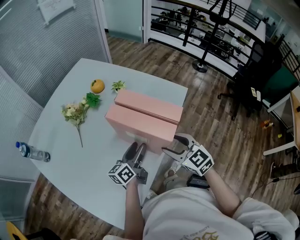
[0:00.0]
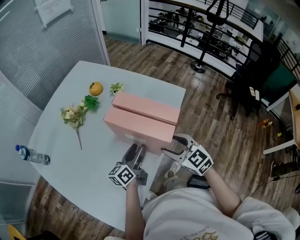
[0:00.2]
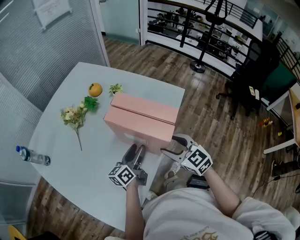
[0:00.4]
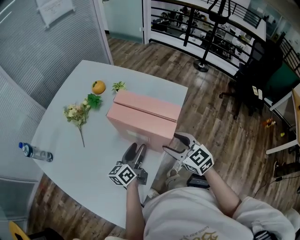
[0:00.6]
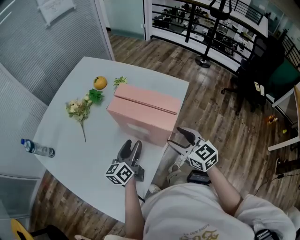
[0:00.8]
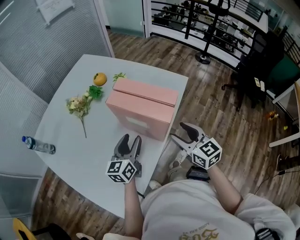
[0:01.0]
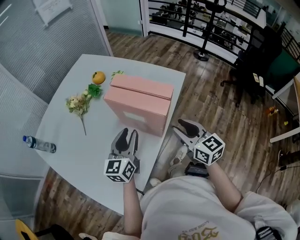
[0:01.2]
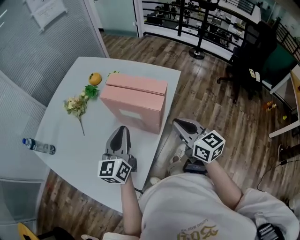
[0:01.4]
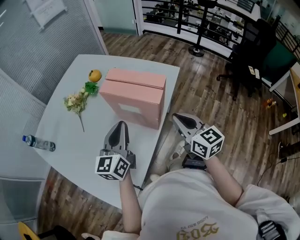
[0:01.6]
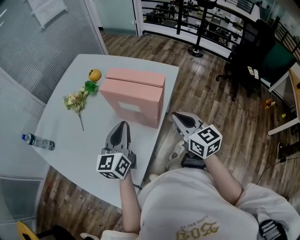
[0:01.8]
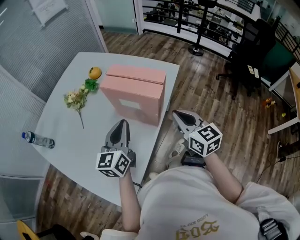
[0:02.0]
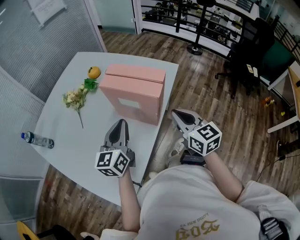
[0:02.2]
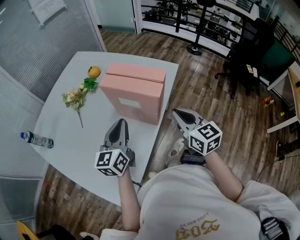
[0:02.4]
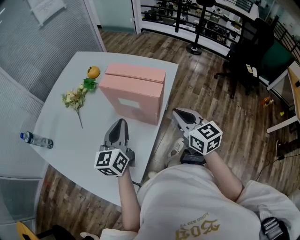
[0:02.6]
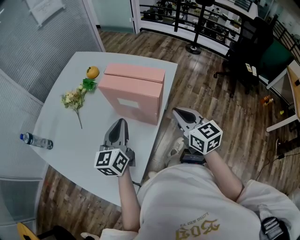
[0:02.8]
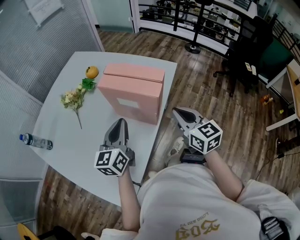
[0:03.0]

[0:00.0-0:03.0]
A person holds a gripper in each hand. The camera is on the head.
0:00.0 to 0:01.6: The right gripper moves upward, backward and to the right, roughly 10 cm, swivels some 30 degrees, and closes, while the left gripper heads upward and backward, covering approximately 15 cm, swivels about 30 degrees, and closes up.
0:01.6 to 0:03.0: The grippers make only small movements.

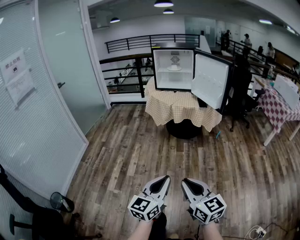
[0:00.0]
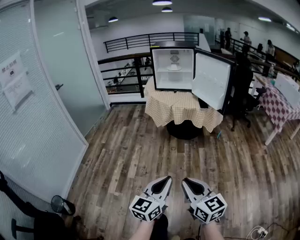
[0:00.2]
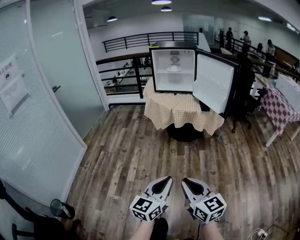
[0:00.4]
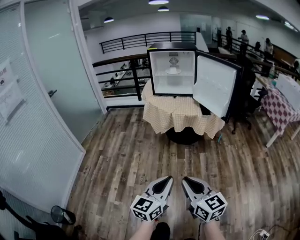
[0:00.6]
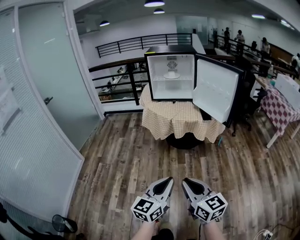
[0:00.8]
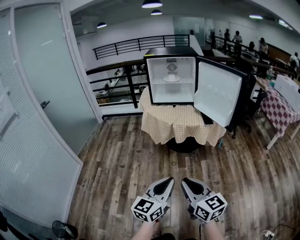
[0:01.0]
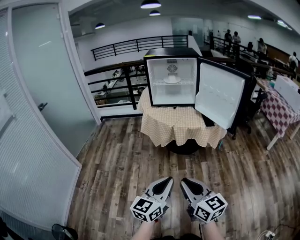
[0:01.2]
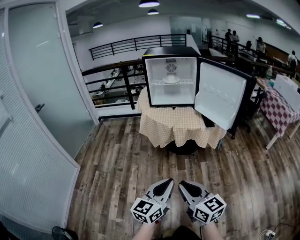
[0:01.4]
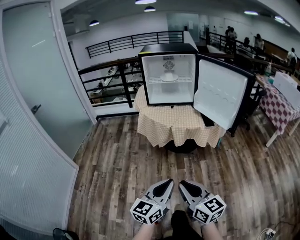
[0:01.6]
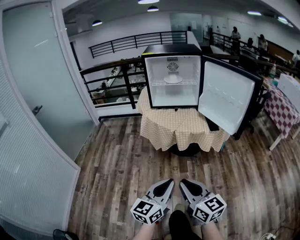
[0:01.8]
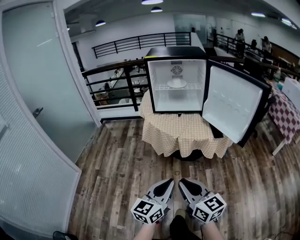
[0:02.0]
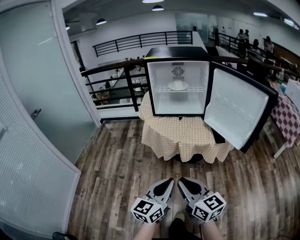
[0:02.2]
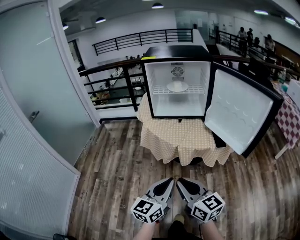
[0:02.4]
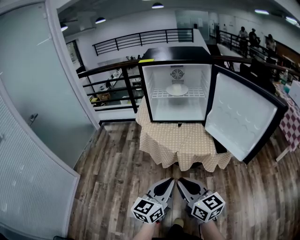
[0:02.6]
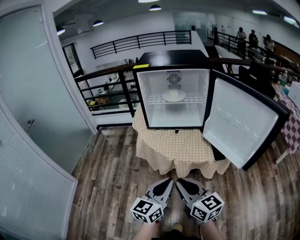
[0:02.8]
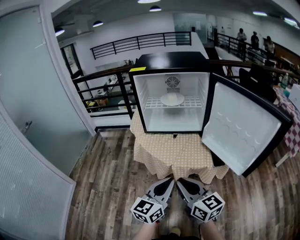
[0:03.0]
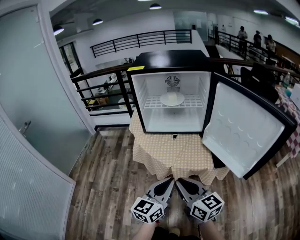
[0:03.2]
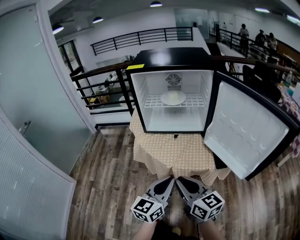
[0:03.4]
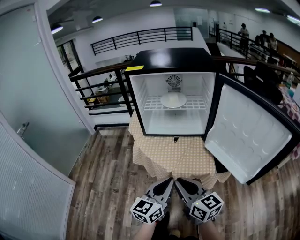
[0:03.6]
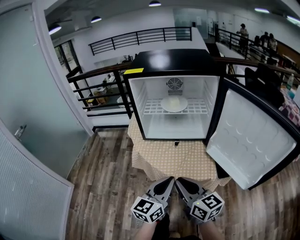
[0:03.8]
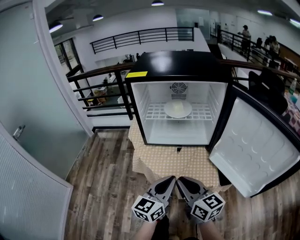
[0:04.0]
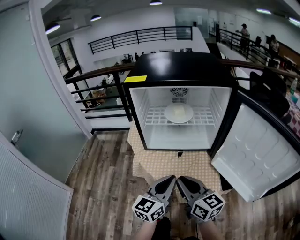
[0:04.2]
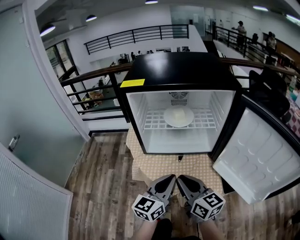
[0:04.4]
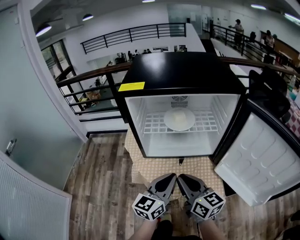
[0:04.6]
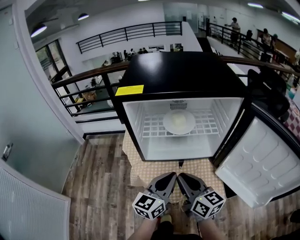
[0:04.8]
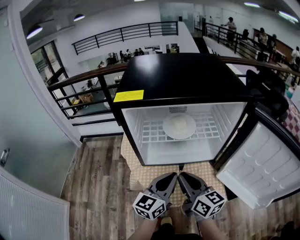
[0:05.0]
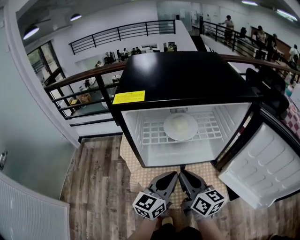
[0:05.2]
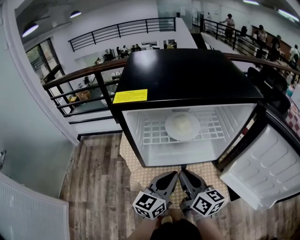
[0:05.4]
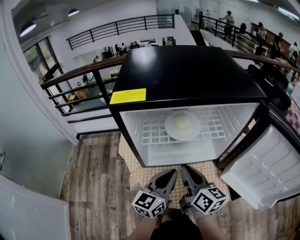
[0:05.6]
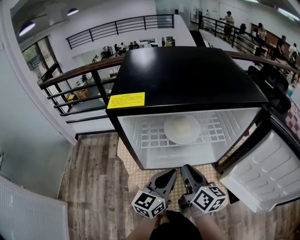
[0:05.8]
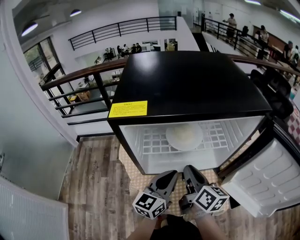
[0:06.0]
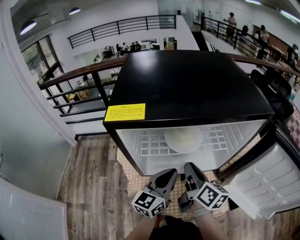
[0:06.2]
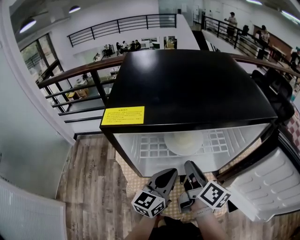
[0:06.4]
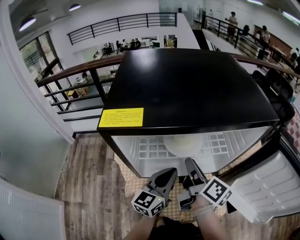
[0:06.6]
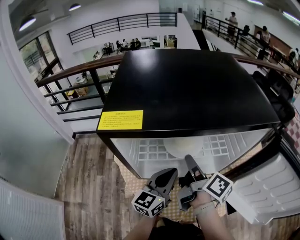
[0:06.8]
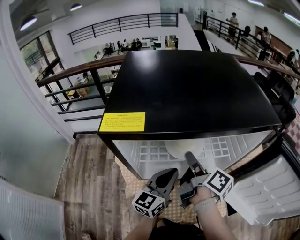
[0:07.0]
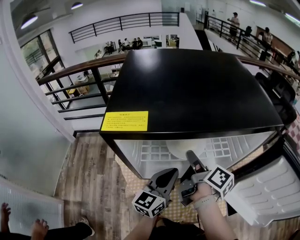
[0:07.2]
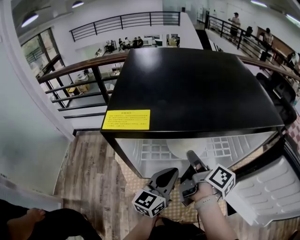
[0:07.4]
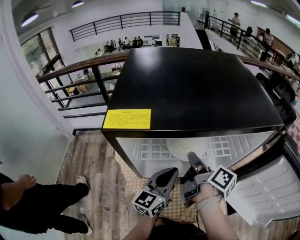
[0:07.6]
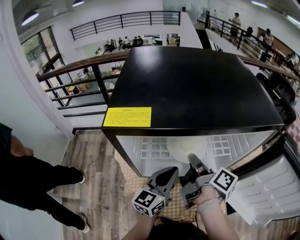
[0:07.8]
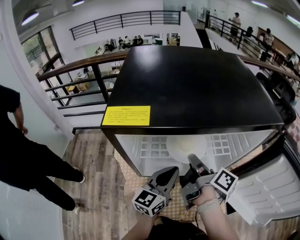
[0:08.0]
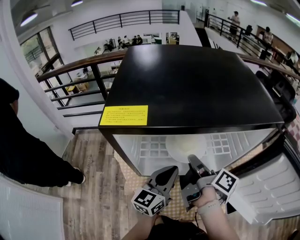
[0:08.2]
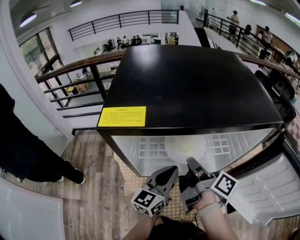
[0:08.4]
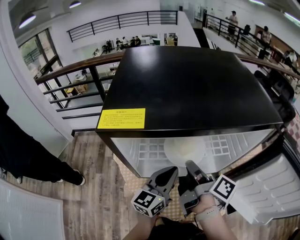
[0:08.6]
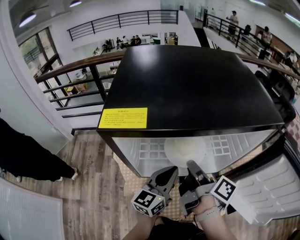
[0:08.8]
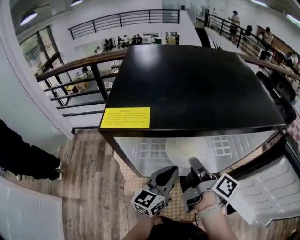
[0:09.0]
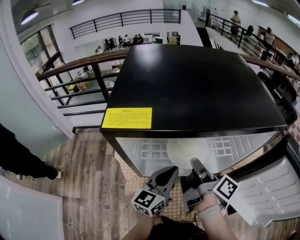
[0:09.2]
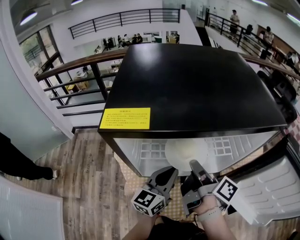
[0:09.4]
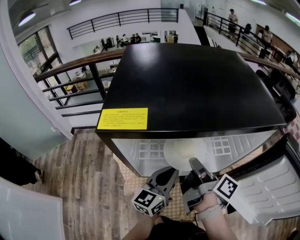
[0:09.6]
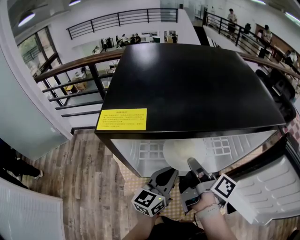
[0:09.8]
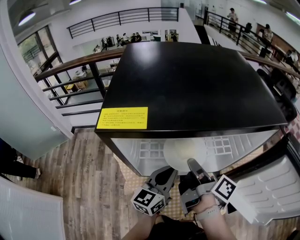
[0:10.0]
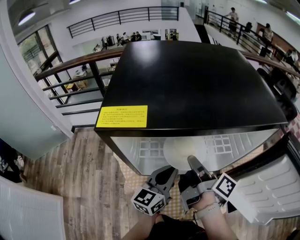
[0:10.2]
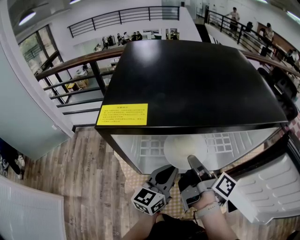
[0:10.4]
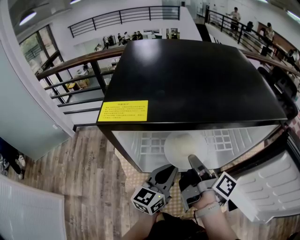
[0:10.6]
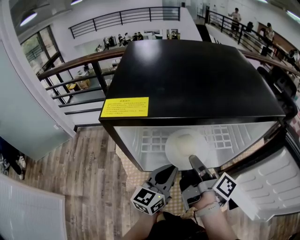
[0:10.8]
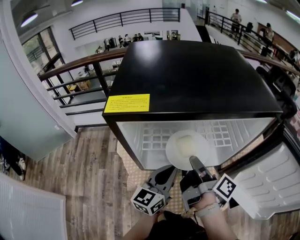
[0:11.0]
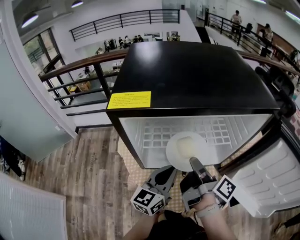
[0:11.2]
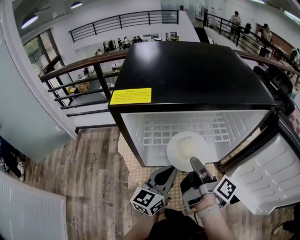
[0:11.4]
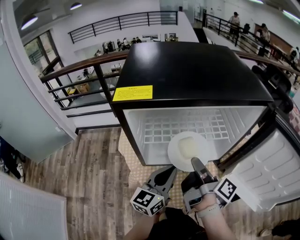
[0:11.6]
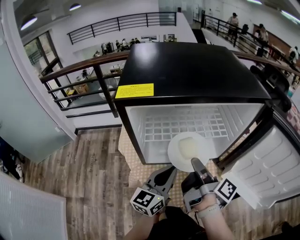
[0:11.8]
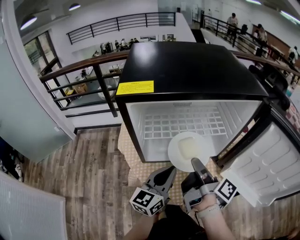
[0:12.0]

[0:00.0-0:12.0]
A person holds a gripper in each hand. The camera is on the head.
0:00.0 to 0:01.6: The two grippers go about 30 cm forward.
0:01.6 to 0:03.0: The grippers both shift forward by approximately 30 cm.
0:03.0 to 0:04.4: The two grippers go roughly 20 cm forward.
0:04.4 to 0:06.0: Both grippers travel together forward, about 15 cm. The right gripper turns by about 30 degrees.
0:06.0 to 0:07.6: The right gripper heads forward, covering about 10 cm, and turns by approximately 40 degrees.
0:07.6 to 0:10.4: There are only small adjustments of the grippers.
0:10.4 to 0:12.0: The two grippers go approximately 10 cm backward.

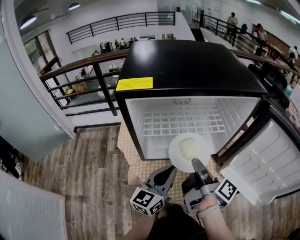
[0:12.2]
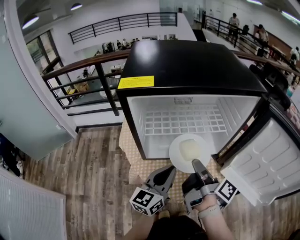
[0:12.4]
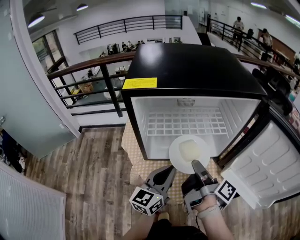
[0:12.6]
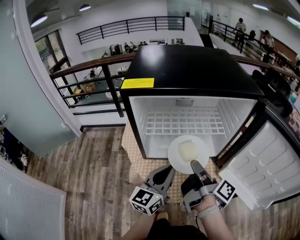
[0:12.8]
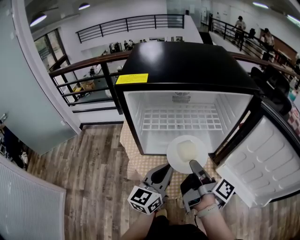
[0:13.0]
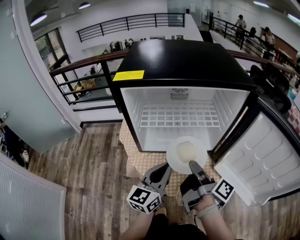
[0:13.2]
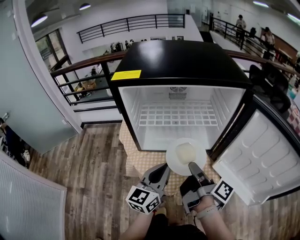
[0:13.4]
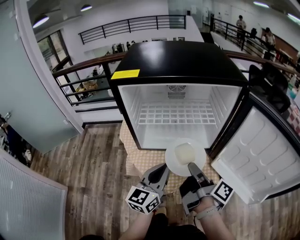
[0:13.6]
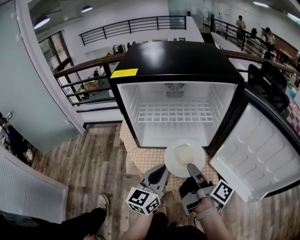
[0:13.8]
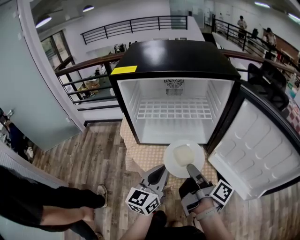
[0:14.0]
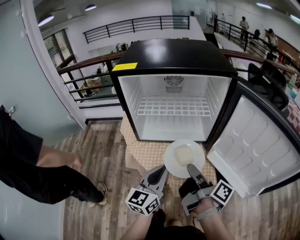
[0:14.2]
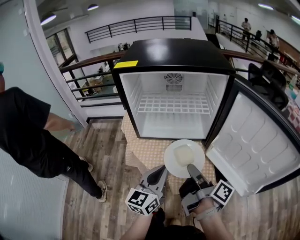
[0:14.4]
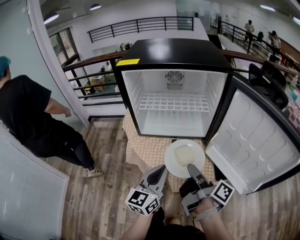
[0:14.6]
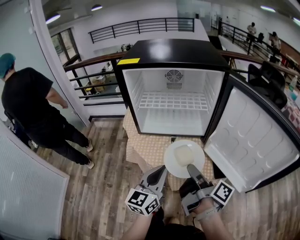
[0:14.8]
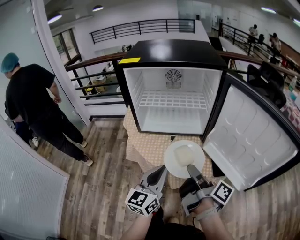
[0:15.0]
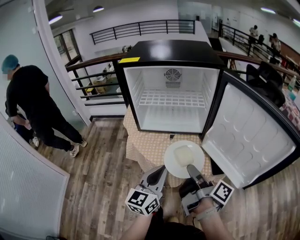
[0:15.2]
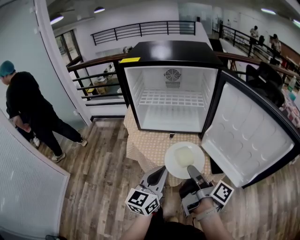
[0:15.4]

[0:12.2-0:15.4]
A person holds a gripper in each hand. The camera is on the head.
0:12.2 to 0:13.8: The left gripper shifts approximately 5 cm backward. The right gripper moves backward and to the right, approximately 10 cm.
0:13.8 to 0:15.4: Both grippers travel together backward, approximately 15 cm.

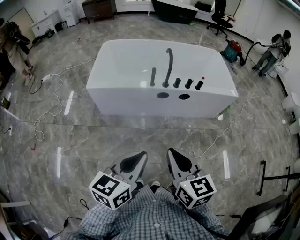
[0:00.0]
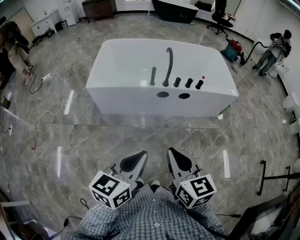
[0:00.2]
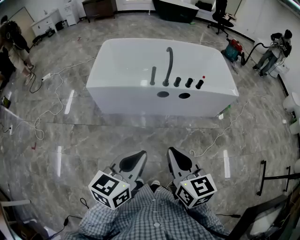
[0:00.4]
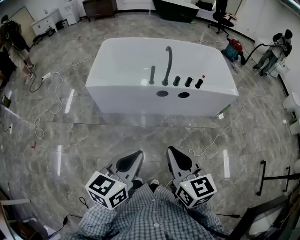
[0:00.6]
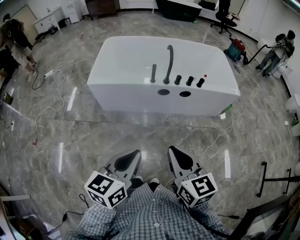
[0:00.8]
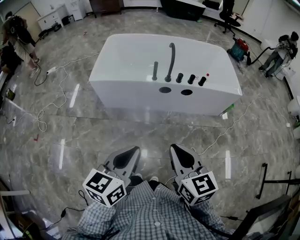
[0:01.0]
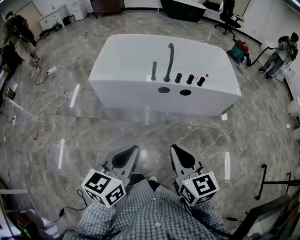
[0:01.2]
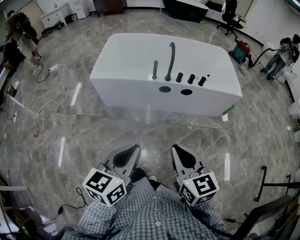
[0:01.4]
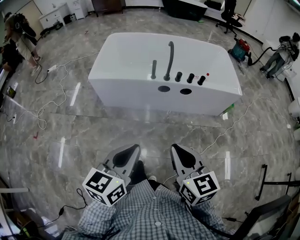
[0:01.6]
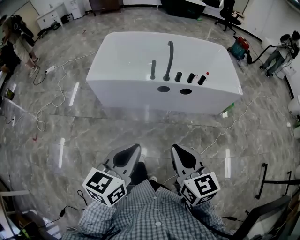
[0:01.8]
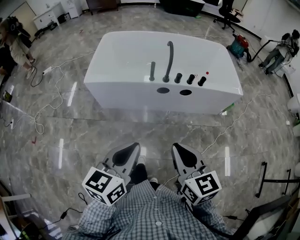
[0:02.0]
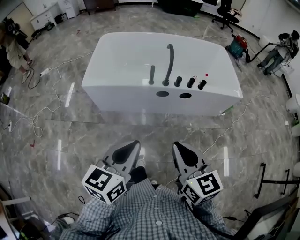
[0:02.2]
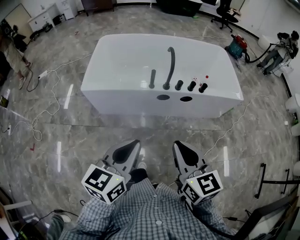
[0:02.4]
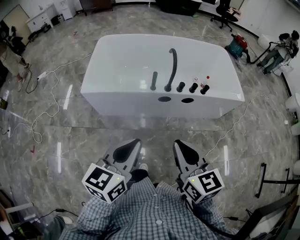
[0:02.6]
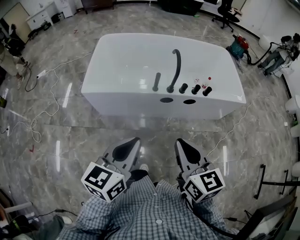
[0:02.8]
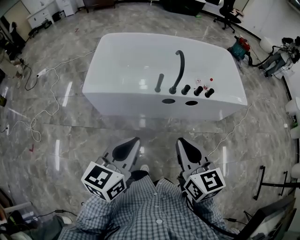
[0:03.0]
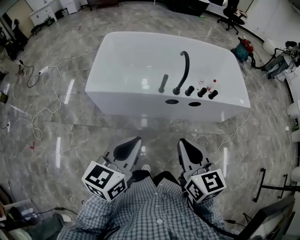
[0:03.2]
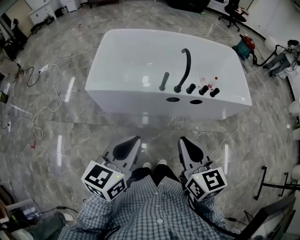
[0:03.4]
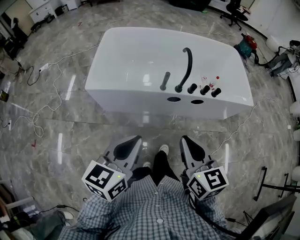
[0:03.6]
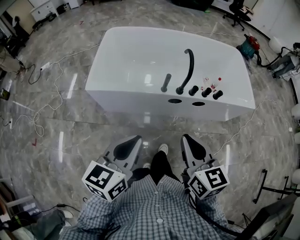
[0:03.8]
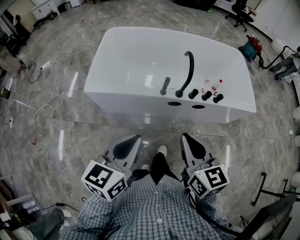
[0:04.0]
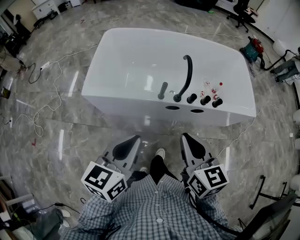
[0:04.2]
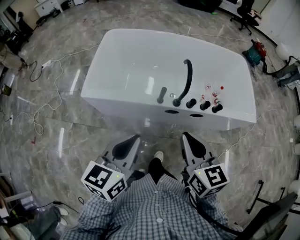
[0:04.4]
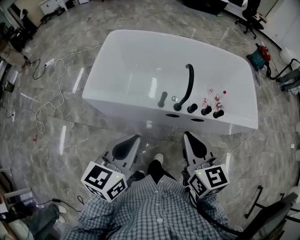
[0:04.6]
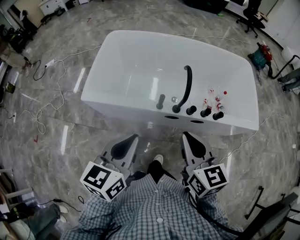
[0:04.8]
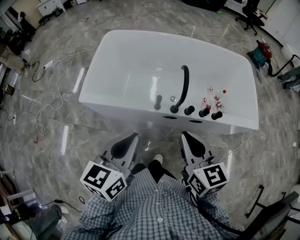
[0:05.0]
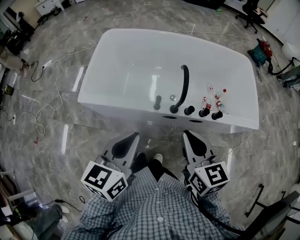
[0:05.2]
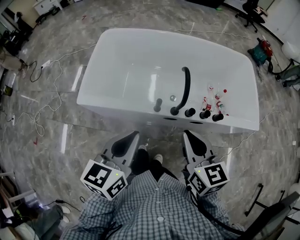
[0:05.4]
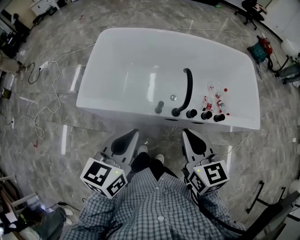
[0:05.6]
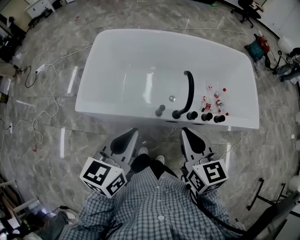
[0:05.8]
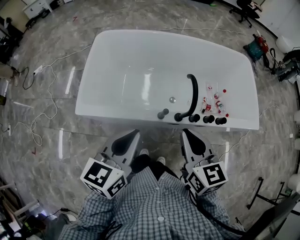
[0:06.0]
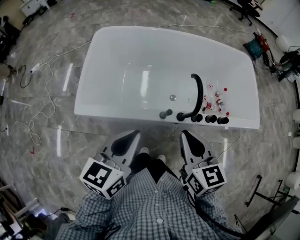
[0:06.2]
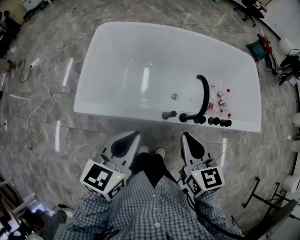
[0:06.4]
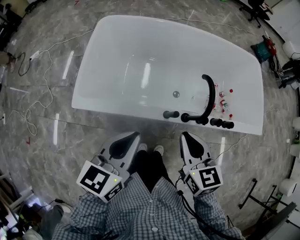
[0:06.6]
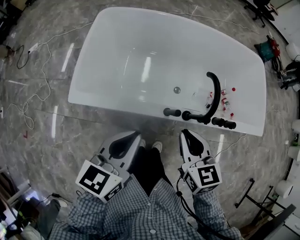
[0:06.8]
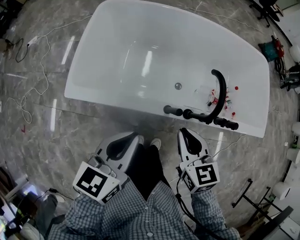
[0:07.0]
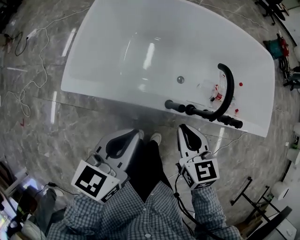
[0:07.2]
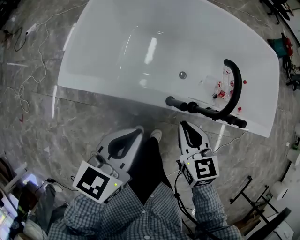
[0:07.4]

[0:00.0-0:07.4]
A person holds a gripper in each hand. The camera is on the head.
0:00.0 to 0:01.4: The right gripper is displaced to the right by some 5 cm.
0:01.4 to 0:03.0: The grippers both shift forward and to the left by some 25 cm.
0:03.0 to 0:04.4: The two grippers go about 15 cm forward.
0:04.4 to 0:06.0: The grippers both shift forward by roughly 20 cm.
0:06.0 to 0:07.4: The two grippers go some 20 cm downward.
